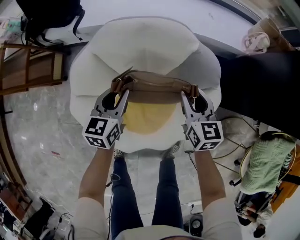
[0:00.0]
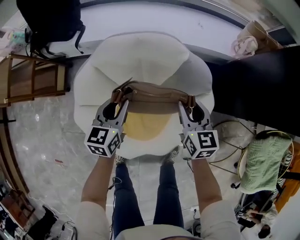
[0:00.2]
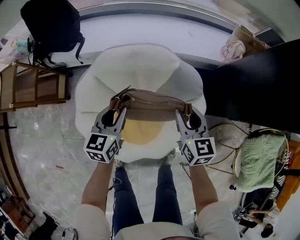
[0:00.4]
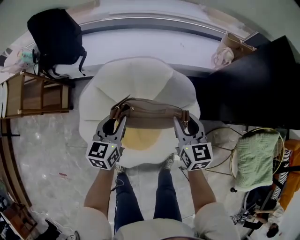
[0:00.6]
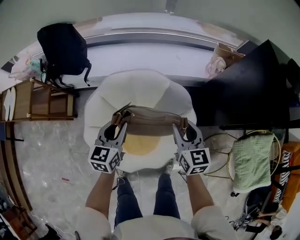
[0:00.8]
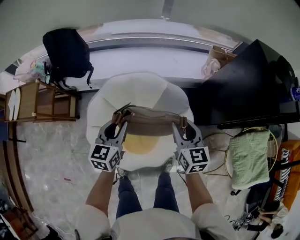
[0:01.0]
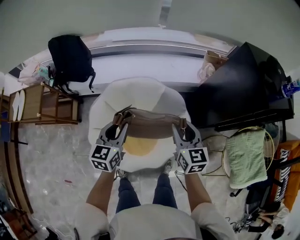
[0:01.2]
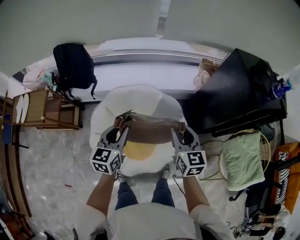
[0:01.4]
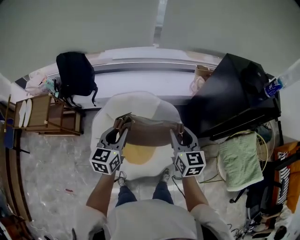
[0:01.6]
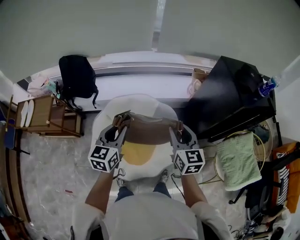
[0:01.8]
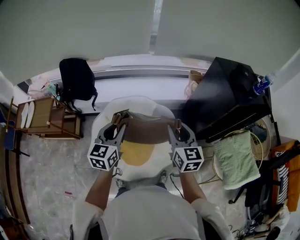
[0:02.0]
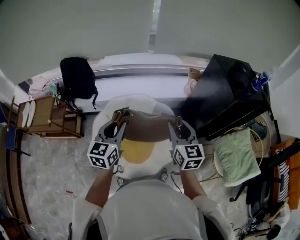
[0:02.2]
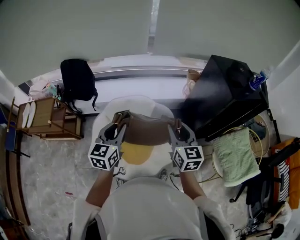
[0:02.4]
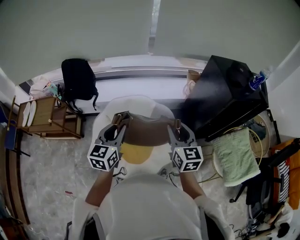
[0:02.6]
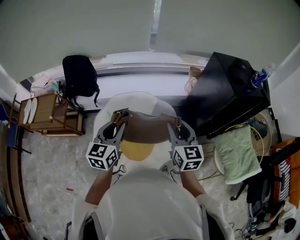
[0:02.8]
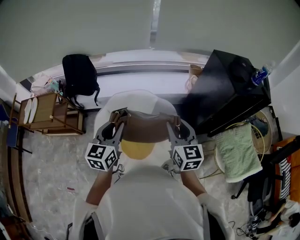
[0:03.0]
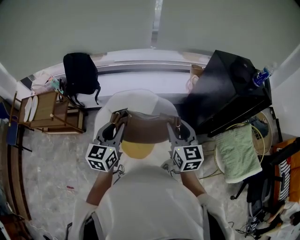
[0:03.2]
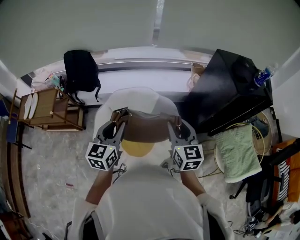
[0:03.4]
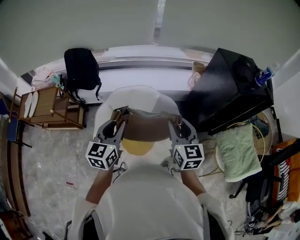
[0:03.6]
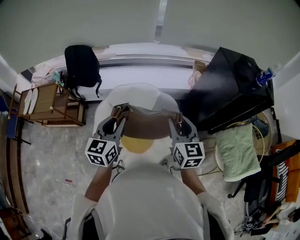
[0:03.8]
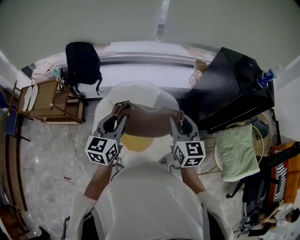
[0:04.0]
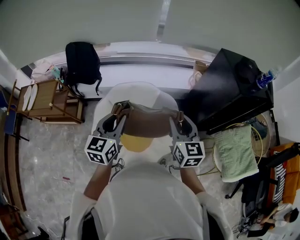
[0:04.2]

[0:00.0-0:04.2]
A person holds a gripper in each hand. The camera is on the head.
0.0 to 1.4 s: The two grippers go approximately 35 cm upward.
1.4 to 2.8 s: Both grippers move upward and backward, roughly 15 cm.
2.8 to 4.2 s: The grippers move only a little.

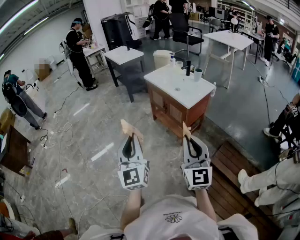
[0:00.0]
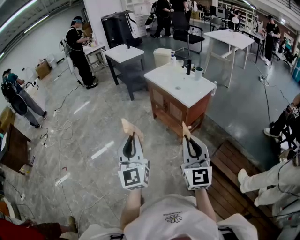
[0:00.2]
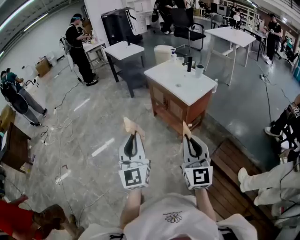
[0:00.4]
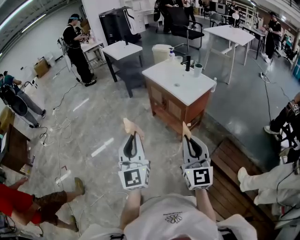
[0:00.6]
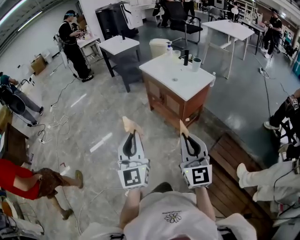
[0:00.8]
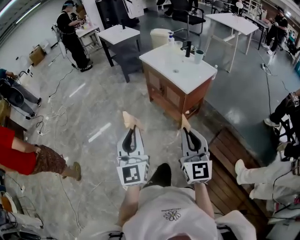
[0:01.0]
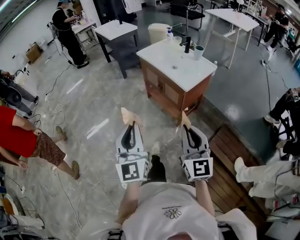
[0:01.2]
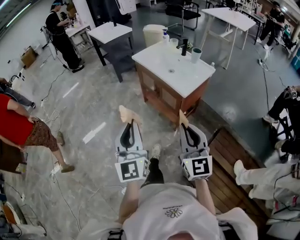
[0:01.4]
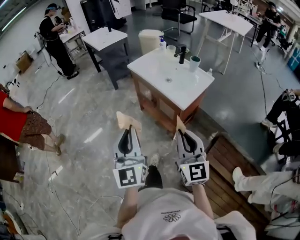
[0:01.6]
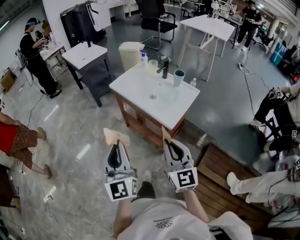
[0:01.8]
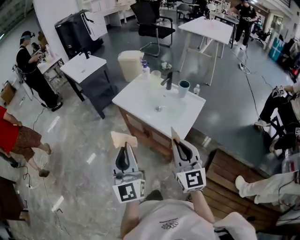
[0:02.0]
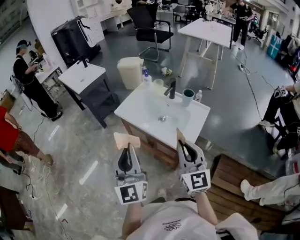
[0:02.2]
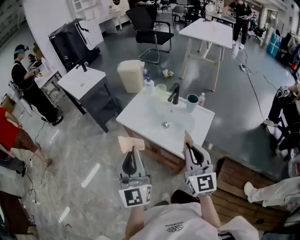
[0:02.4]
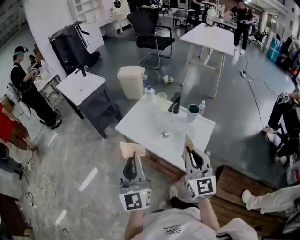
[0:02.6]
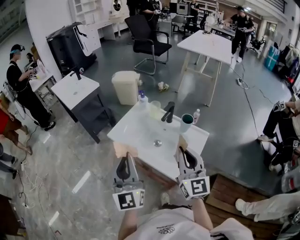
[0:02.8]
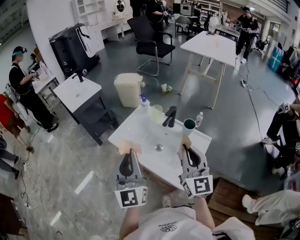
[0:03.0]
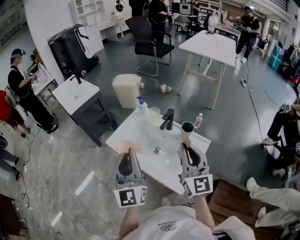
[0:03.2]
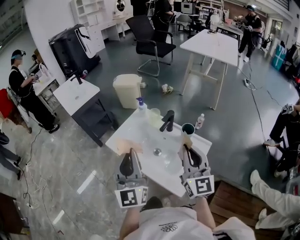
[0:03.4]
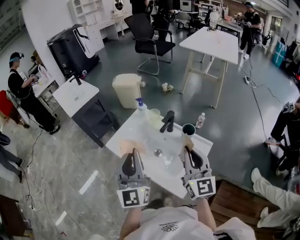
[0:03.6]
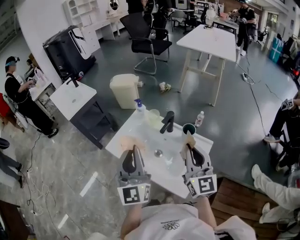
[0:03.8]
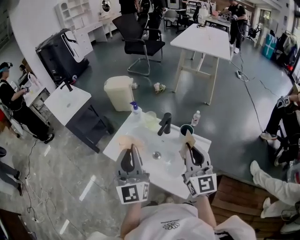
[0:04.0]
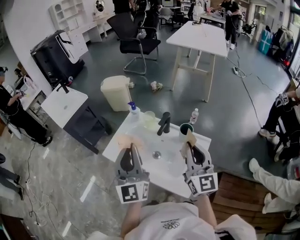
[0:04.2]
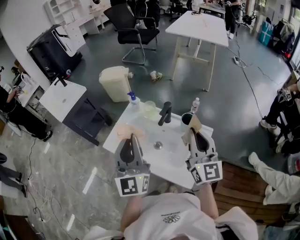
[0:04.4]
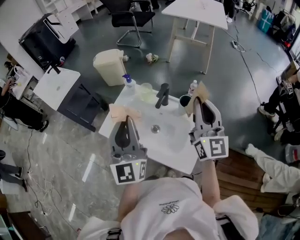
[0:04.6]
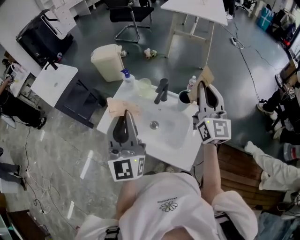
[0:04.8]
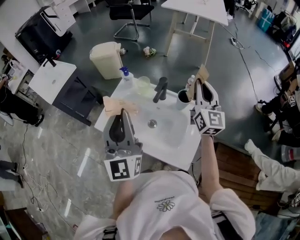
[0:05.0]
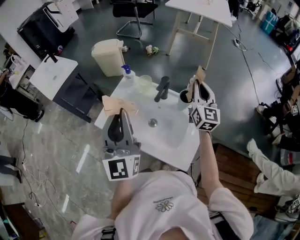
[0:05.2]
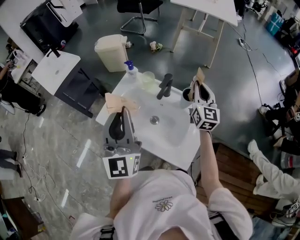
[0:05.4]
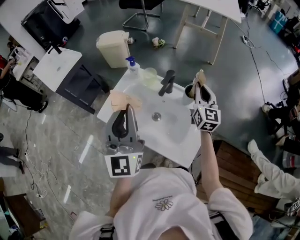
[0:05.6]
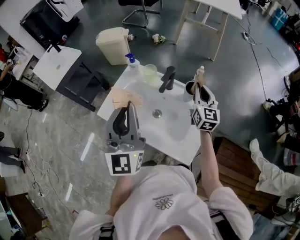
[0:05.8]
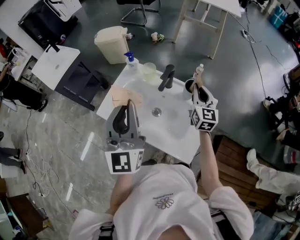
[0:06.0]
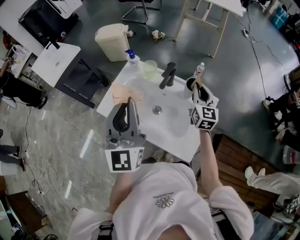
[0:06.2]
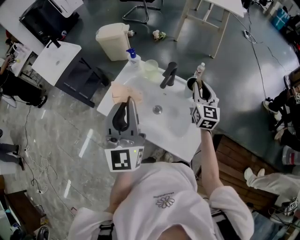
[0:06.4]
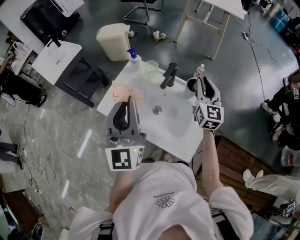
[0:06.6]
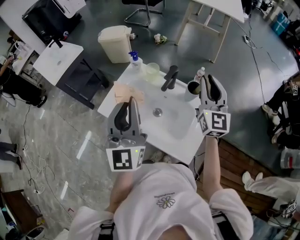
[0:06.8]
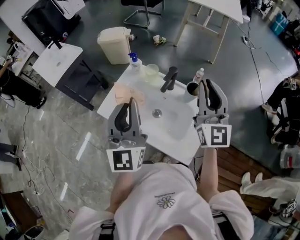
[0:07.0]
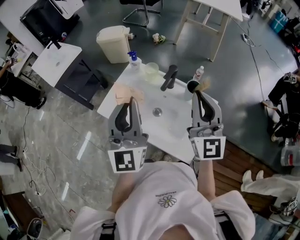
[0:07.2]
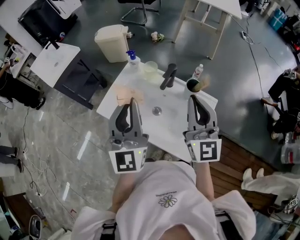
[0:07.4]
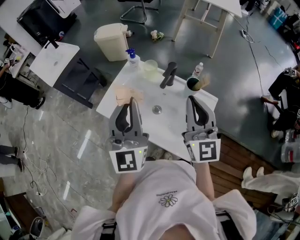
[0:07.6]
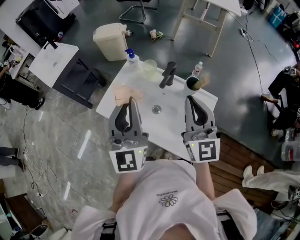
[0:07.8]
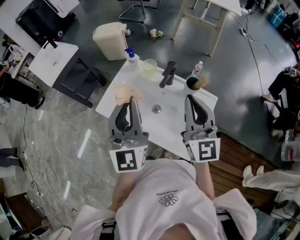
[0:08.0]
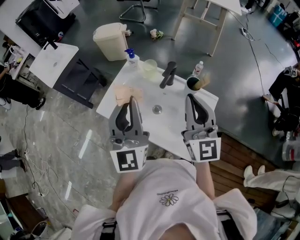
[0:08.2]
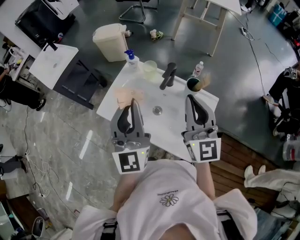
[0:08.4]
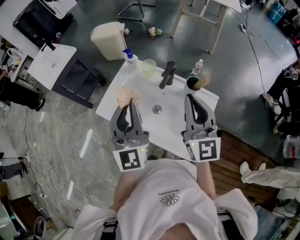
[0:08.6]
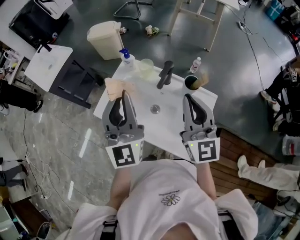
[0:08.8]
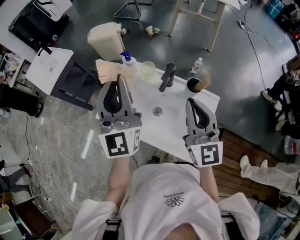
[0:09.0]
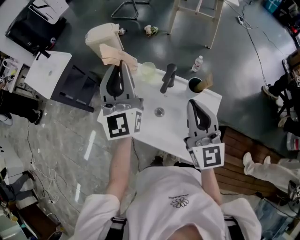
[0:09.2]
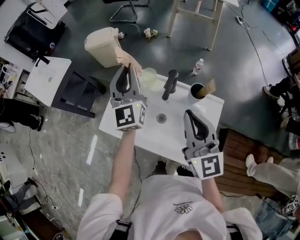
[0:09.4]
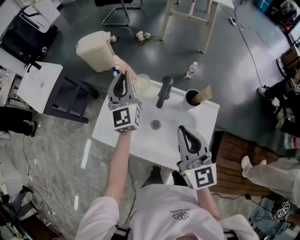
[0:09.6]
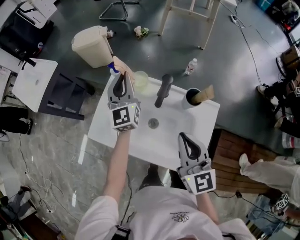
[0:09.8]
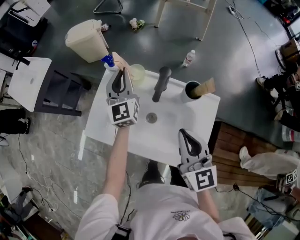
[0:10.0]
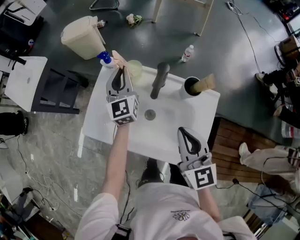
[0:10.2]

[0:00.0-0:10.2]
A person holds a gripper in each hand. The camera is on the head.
0.0 to 1.4 s: The left gripper shifts about 15 cm forward and to the right; the right gripper shifts some 15 cm forward and downward.
1.4 to 3.0 s: The pair of grippers is taken forward, some 50 cm.
3.0 to 4.4 s: The left gripper travels forward by about 10 cm. The right gripper is displaced forward and to the right by about 10 cm.
4.4 to 5.8 s: The right gripper goes some 20 cm forward and downward.
5.8 to 7.2 s: The right gripper heads upward, backward and to the left, covering about 20 cm, and changes its angle by about 20 degrees.
7.2 to 8.8 s: The grippers move only a little.
8.8 to 10.2 s: The right gripper goes approximately 15 cm downward, and turns by about 20 degrees. Meanwhile the left gripper shifts roughly 30 cm forward and downward, and rotates about 20 degrees.

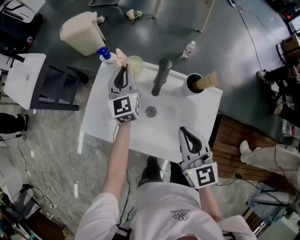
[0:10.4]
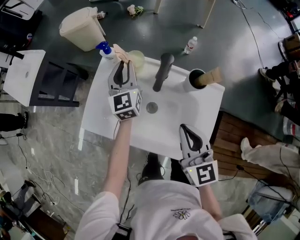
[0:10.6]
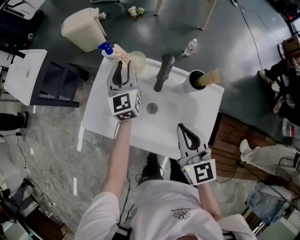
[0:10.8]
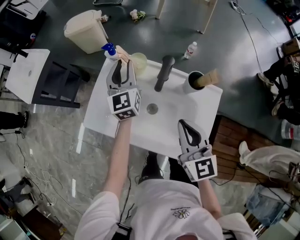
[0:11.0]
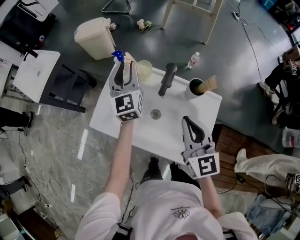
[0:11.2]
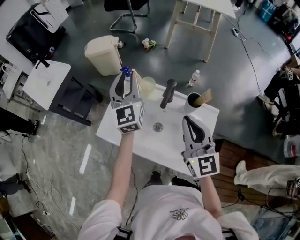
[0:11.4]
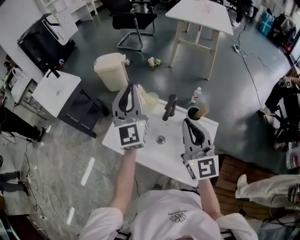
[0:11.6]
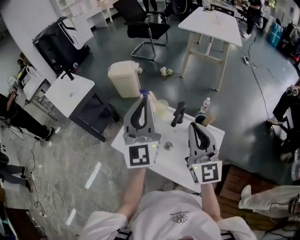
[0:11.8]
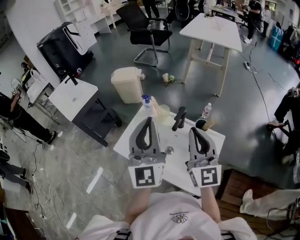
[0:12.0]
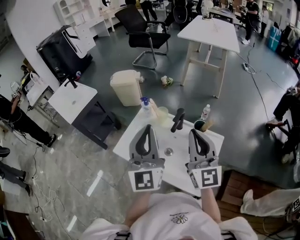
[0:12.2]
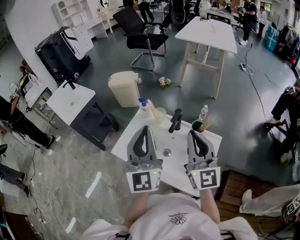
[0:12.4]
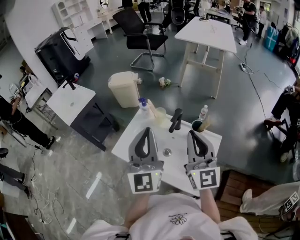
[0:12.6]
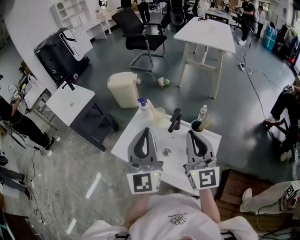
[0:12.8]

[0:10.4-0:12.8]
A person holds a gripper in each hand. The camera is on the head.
10.4 to 11.6 s: The right gripper is displaced upward by approximately 15 cm, and swivels approximately 20 degrees; the left gripper is displaced upward and backward by some 25 cm, and turns by approximately 20 degrees.
11.6 to 12.8 s: The left gripper travels backward by roughly 15 cm.

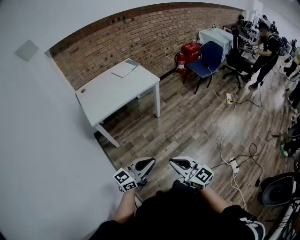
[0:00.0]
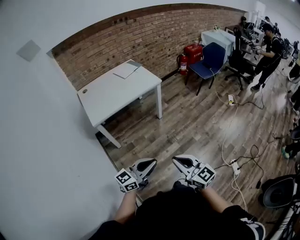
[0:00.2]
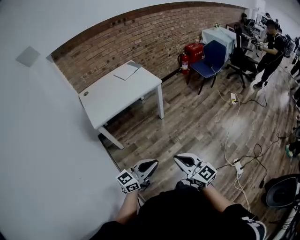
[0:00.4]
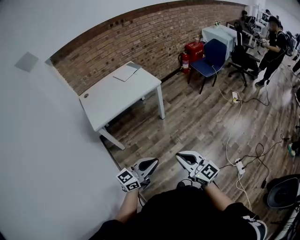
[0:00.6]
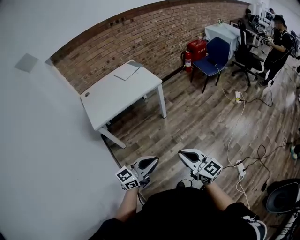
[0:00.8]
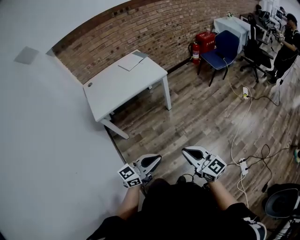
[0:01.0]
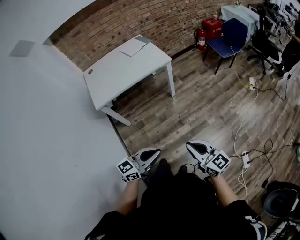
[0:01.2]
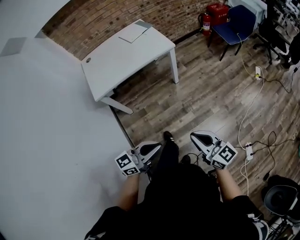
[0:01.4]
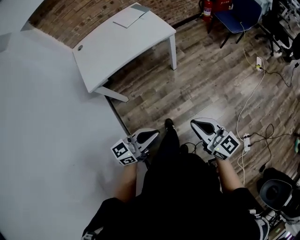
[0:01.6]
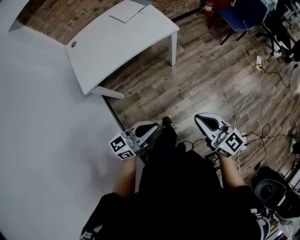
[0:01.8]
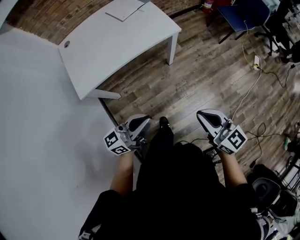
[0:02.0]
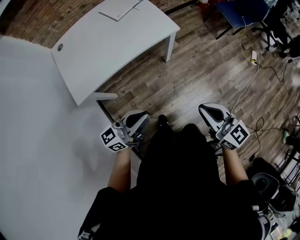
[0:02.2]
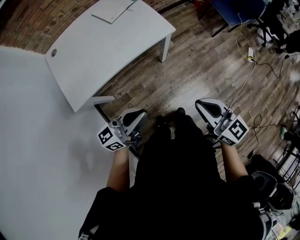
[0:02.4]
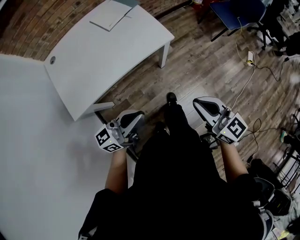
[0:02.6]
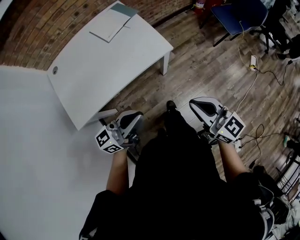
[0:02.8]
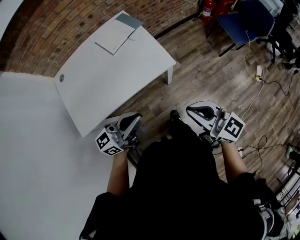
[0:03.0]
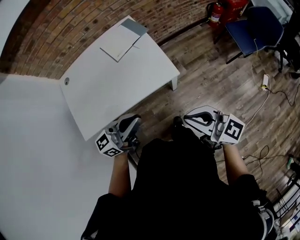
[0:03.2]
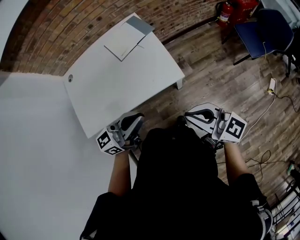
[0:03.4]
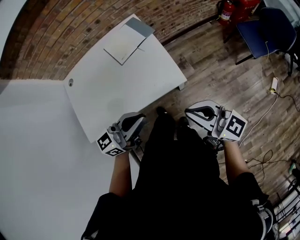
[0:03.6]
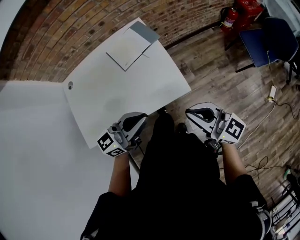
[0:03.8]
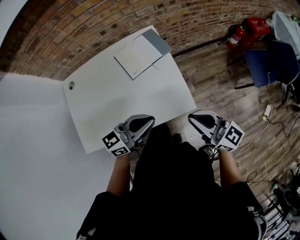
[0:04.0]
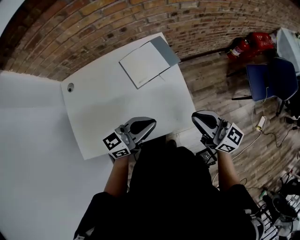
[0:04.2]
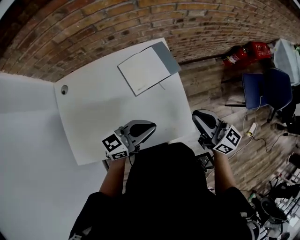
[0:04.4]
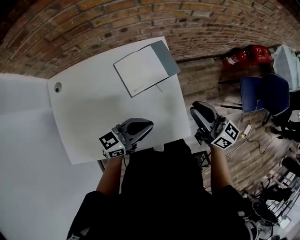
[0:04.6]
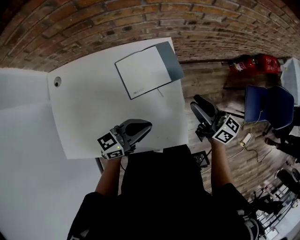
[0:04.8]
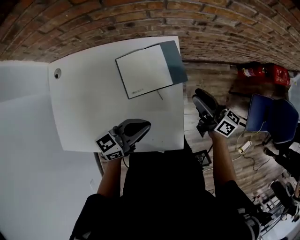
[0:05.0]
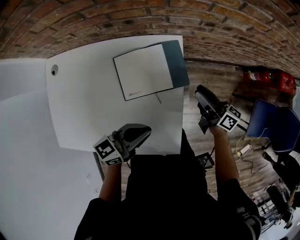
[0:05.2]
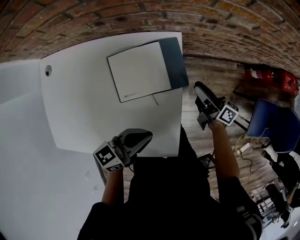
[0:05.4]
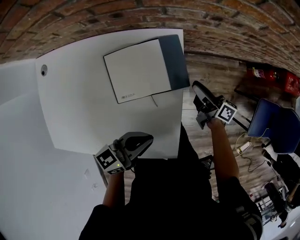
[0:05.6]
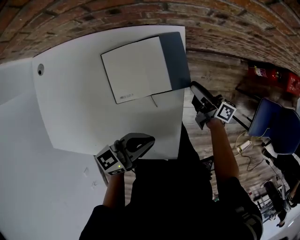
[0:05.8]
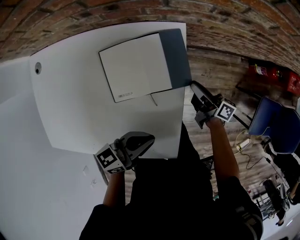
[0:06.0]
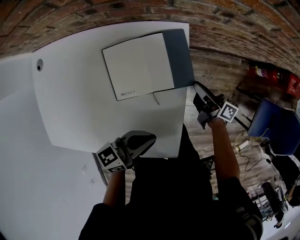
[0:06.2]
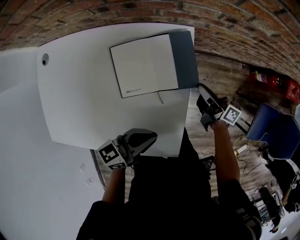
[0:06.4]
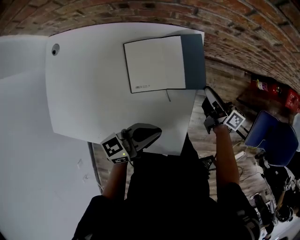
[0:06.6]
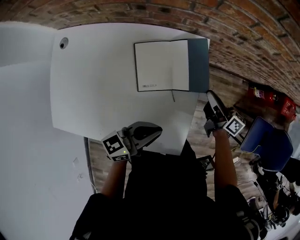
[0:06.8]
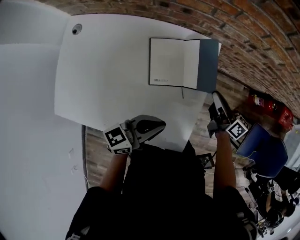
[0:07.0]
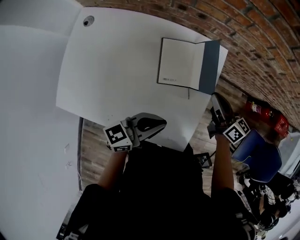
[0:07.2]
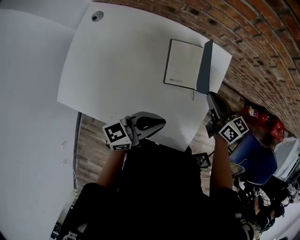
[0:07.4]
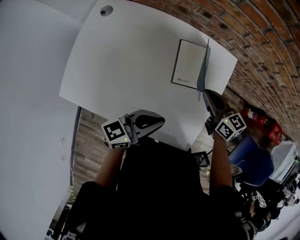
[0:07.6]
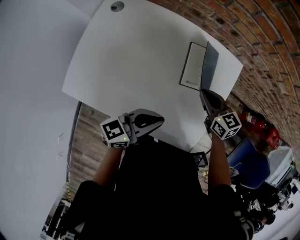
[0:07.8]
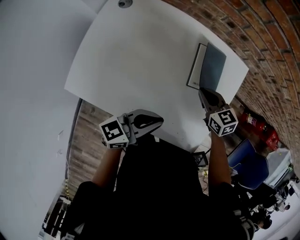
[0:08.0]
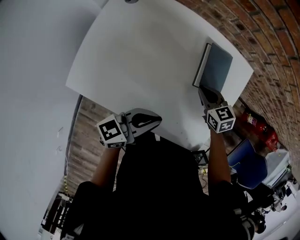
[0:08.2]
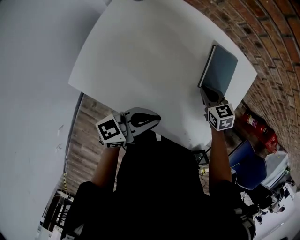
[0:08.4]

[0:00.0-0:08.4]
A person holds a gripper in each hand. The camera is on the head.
0.0 to 1.4 s: The right gripper travels forward and to the right by roughly 20 cm. Meanwhile the left gripper travels forward and to the right by roughly 10 cm.
1.4 to 2.8 s: The pair of grippers is taken forward, about 40 cm.
2.8 to 4.2 s: Both grippers move forward, roughly 35 cm. The right gripper turns by some 20 degrees.
4.2 to 5.6 s: The left gripper heads forward, downward and to the right, covering roughly 20 cm, and turns by about 30 degrees. The right gripper shifts roughly 40 cm forward and downward, twists about 40 degrees clockwise, seen from behind, and opens its fingers.
5.6 to 7.0 s: The left gripper goes approximately 5 cm to the left, while the right gripper shifts roughly 10 cm upward and to the left, and closes its fingers.
7.0 to 8.4 s: The two grippers go some 25 cm to the left. The right gripper points its fingers approximately 40 degrees further downward.
